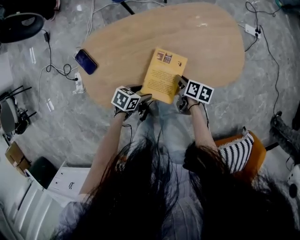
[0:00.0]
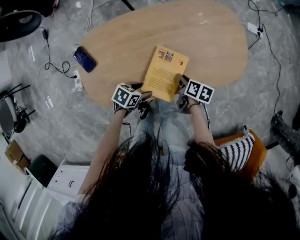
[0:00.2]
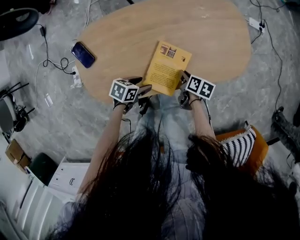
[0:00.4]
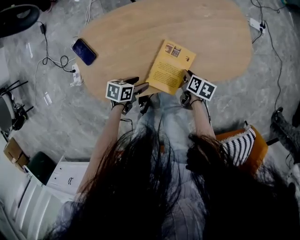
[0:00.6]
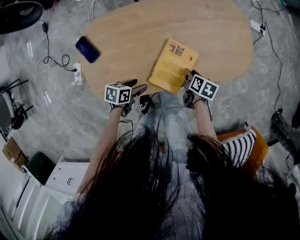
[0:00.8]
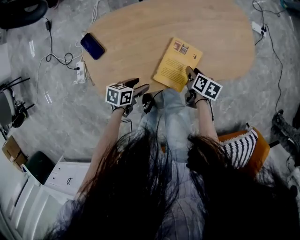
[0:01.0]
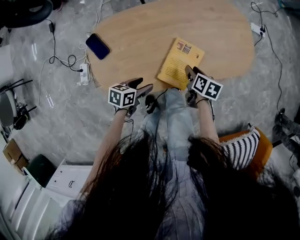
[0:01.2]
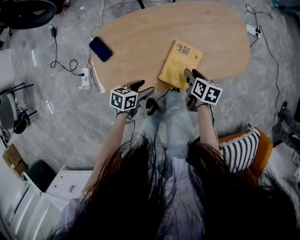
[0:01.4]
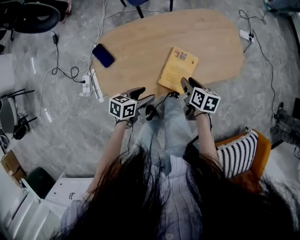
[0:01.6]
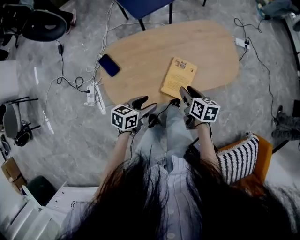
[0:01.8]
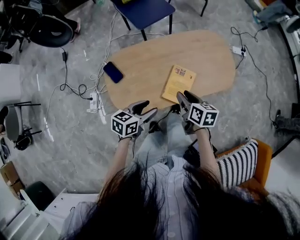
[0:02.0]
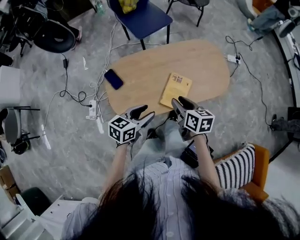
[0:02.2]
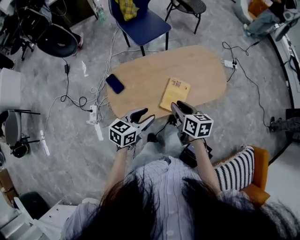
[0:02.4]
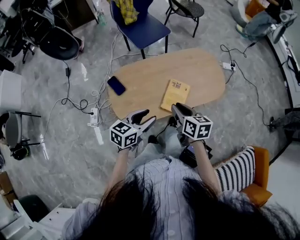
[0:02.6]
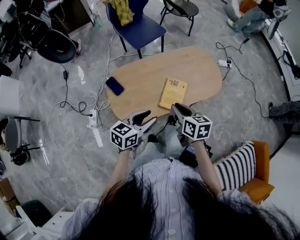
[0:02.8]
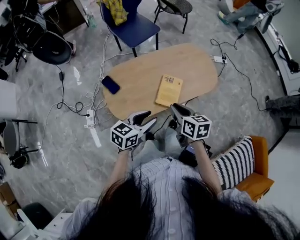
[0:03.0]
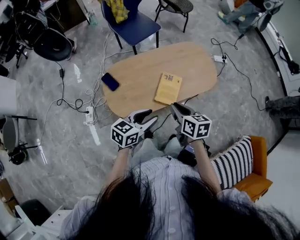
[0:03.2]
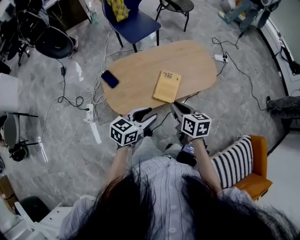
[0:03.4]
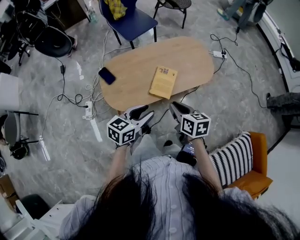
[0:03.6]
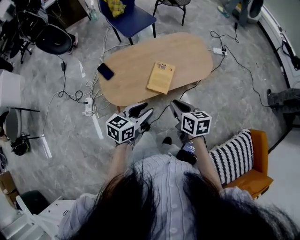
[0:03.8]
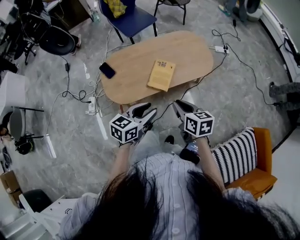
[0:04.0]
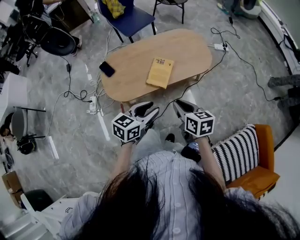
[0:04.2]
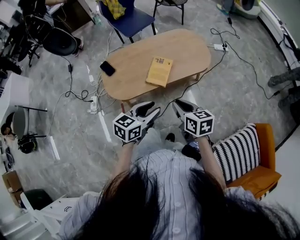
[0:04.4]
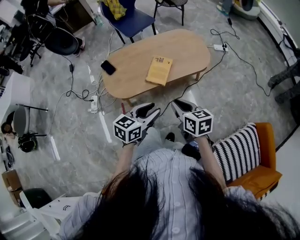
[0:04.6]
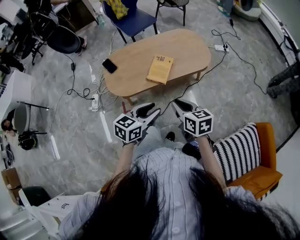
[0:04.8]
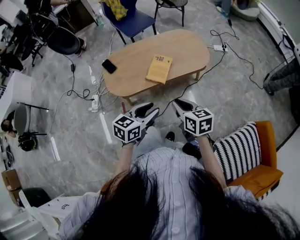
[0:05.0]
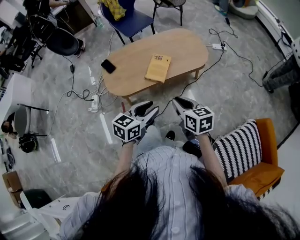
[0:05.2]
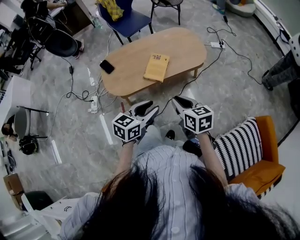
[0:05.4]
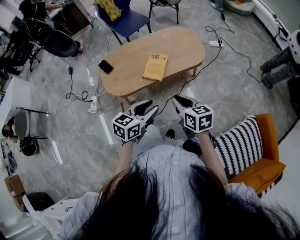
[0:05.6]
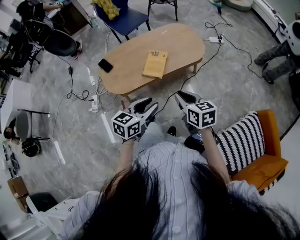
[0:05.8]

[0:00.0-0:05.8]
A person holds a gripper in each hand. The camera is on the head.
0.0 to 1.4 s: The left gripper changes place by roughly 10 cm. The right gripper shifts about 5 cm upward.
1.4 to 2.8 s: The right gripper heads upward and backward, covering about 30 cm, turns by some 20 degrees, and closes. Meanwhile the left gripper heads upward, covering some 30 cm, and changes its angle by roughly 30 degrees.
2.8 to 4.4 s: Both grippers move to the right and backward, roughly 25 cm.
4.4 to 5.8 s: The left gripper is displaced backward by approximately 5 cm; the right gripper shifts by approximately 5 cm.

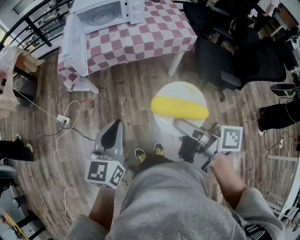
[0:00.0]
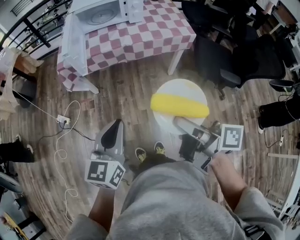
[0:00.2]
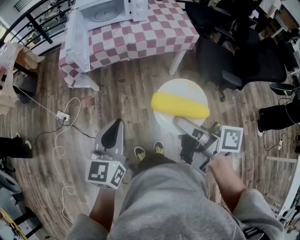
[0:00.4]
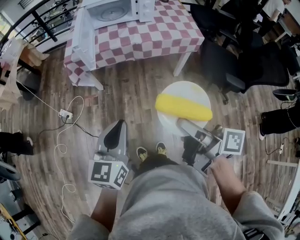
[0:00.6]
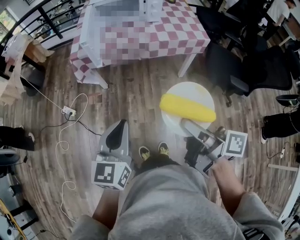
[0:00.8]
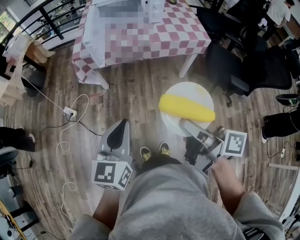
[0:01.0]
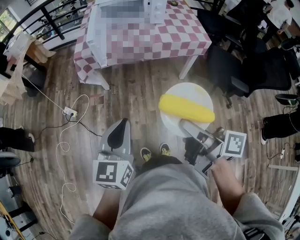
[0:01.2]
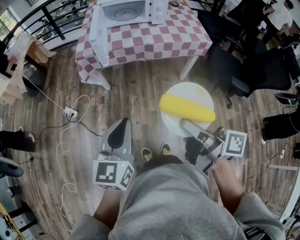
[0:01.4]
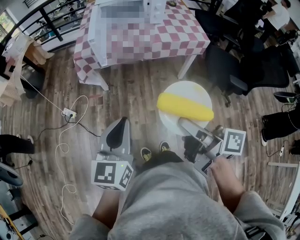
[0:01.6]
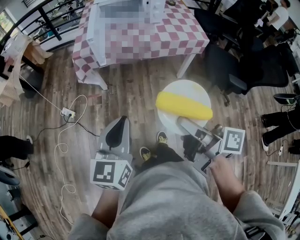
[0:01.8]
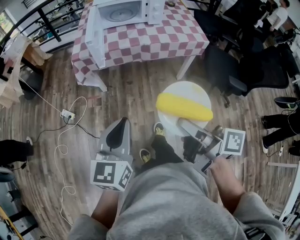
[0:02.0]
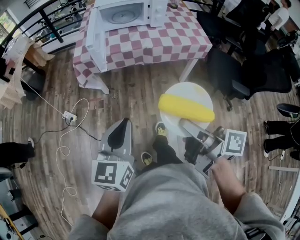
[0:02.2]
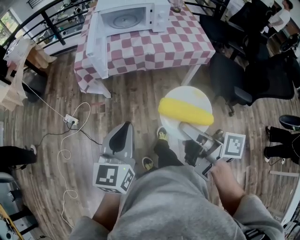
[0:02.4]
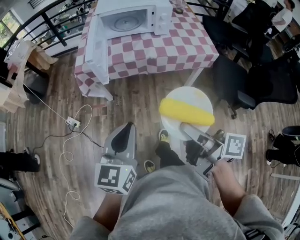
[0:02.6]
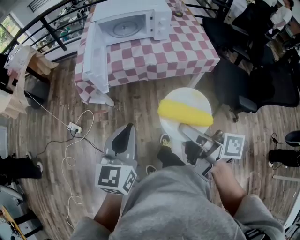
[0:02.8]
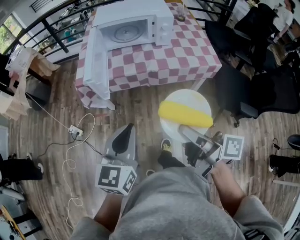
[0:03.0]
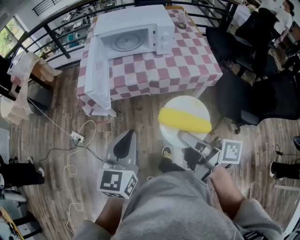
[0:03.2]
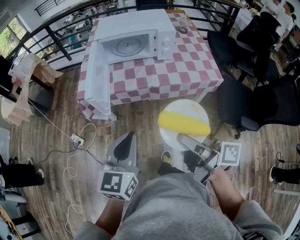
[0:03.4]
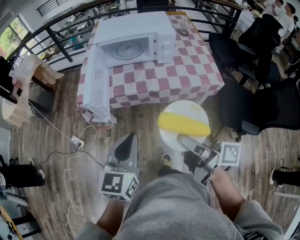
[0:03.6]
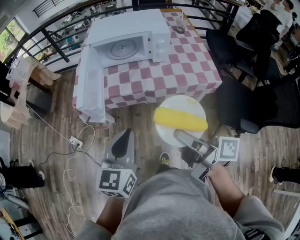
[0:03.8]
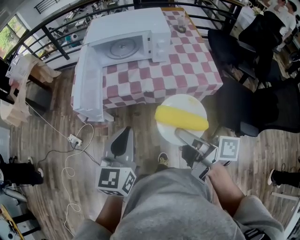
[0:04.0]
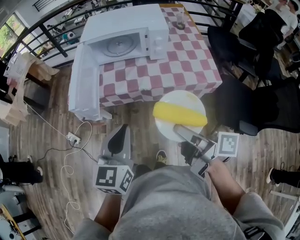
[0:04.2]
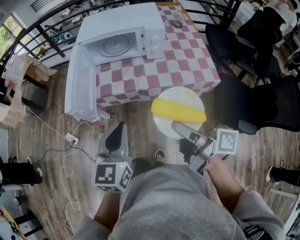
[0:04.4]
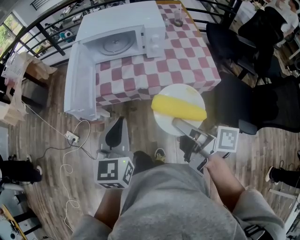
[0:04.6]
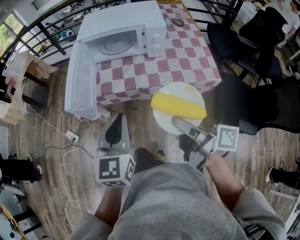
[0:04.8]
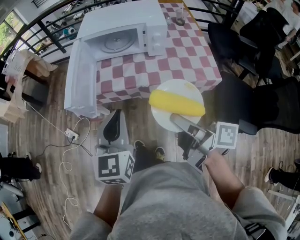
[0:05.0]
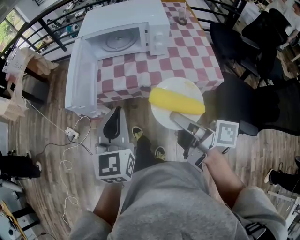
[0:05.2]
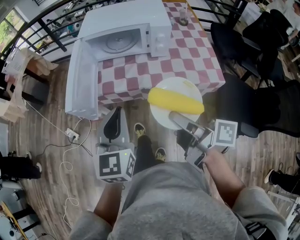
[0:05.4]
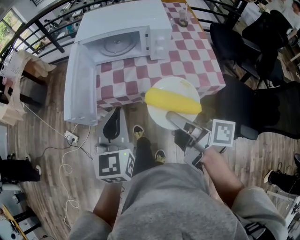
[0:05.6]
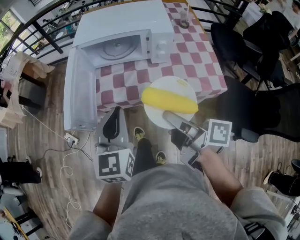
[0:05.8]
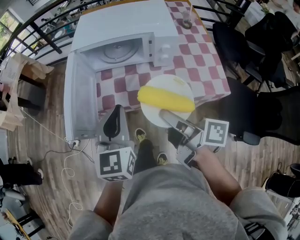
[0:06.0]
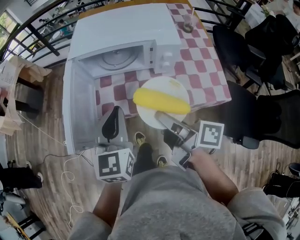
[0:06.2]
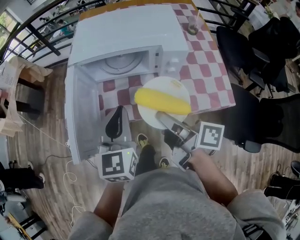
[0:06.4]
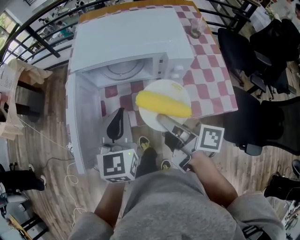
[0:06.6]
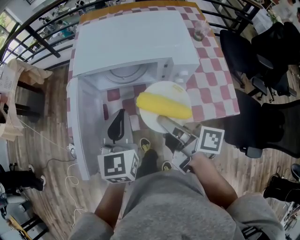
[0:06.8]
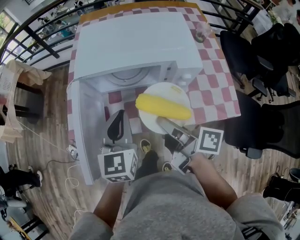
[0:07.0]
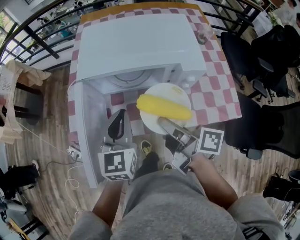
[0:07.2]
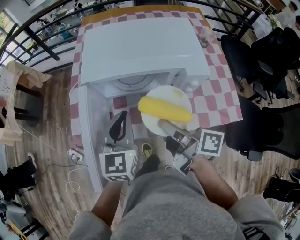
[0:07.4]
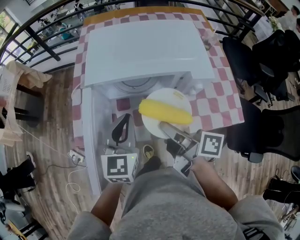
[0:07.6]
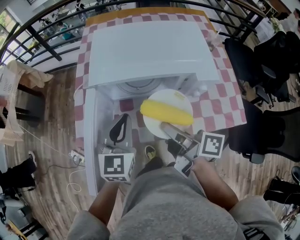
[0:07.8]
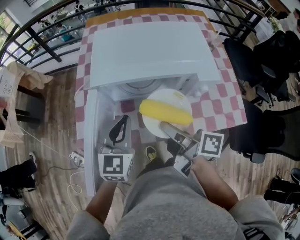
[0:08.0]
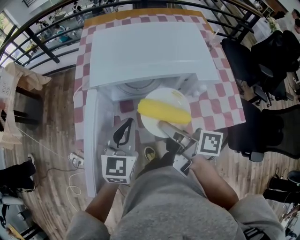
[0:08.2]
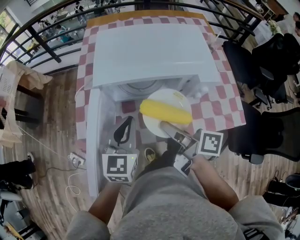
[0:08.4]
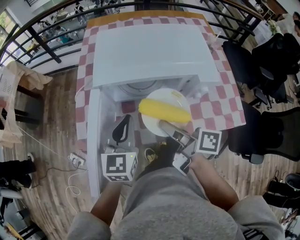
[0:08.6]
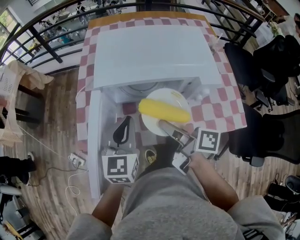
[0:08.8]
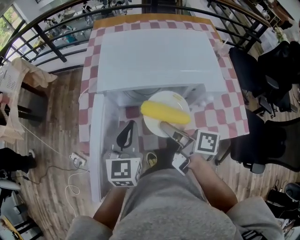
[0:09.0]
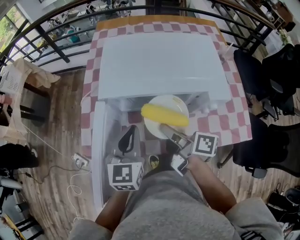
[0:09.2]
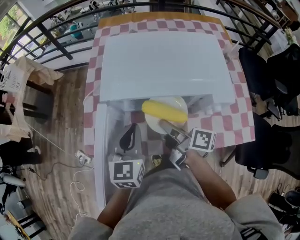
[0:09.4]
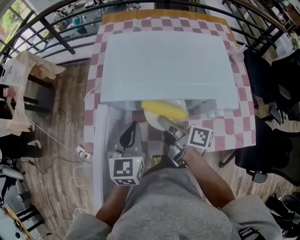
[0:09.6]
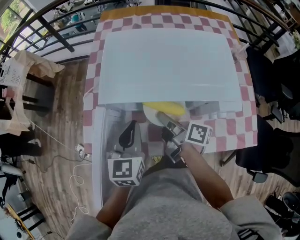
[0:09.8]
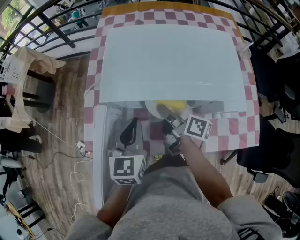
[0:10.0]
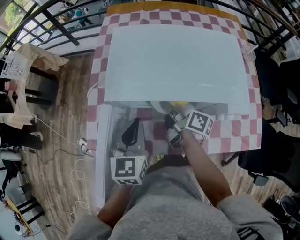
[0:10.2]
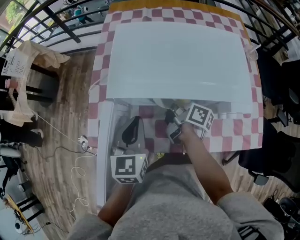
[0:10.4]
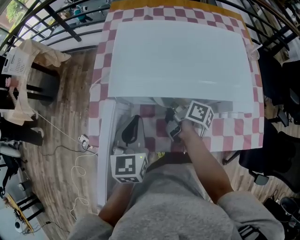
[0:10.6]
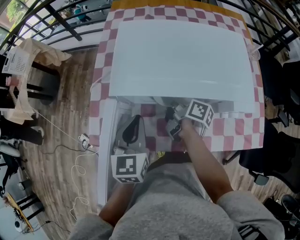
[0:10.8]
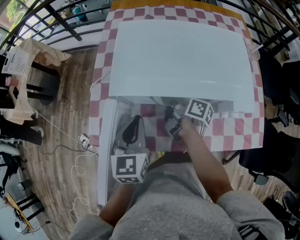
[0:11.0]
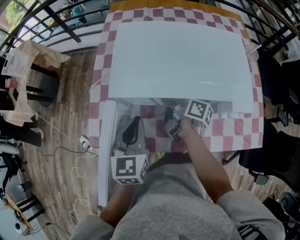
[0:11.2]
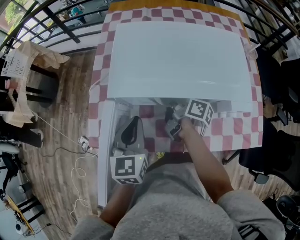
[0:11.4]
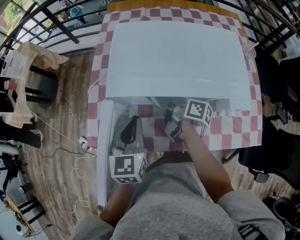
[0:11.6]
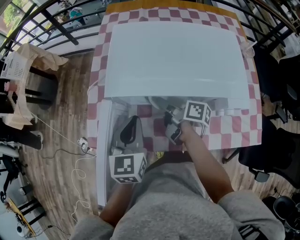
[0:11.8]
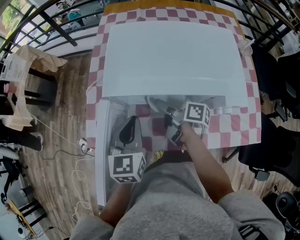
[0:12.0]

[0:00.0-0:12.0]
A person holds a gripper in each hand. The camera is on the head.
0.0 to 1.6 s: The grippers both shift to the left by about 10 cm.
1.6 to 3.0 s: The left gripper shifts approximately 20 cm forward and to the right, while the right gripper travels forward by roughly 15 cm.
3.0 to 4.4 s: The grippers both shift forward and to the right by approximately 15 cm.
4.4 to 6.0 s: Both grippers travel together forward, roughly 15 cm.
6.0 to 7.6 s: Both grippers travel together forward, roughly 20 cm.
7.6 to 9.0 s: The right gripper ends up approximately 5 cm from where it was.
9.0 to 10.4 s: The right gripper moves forward and downward, roughly 20 cm, while the left gripper moves forward, some 5 cm.
10.4 to 12.0 s: The right gripper opens.

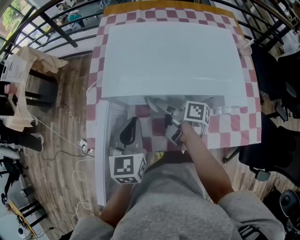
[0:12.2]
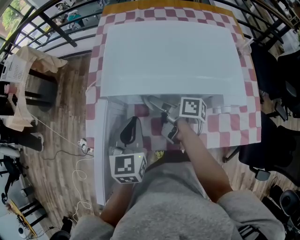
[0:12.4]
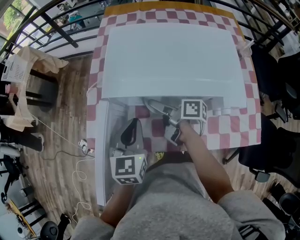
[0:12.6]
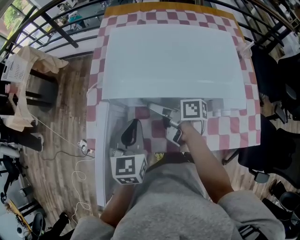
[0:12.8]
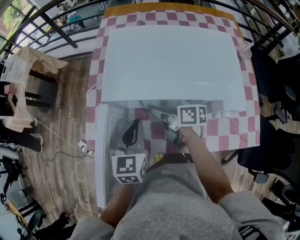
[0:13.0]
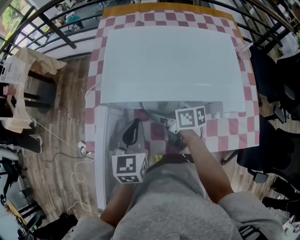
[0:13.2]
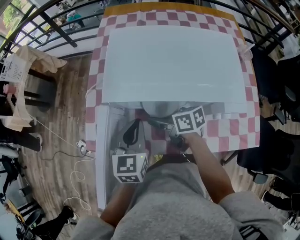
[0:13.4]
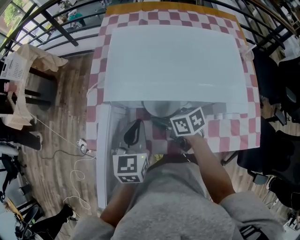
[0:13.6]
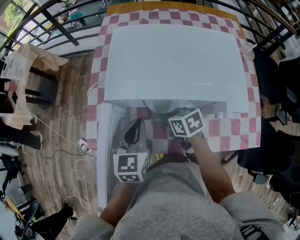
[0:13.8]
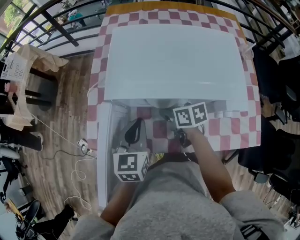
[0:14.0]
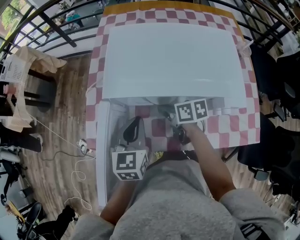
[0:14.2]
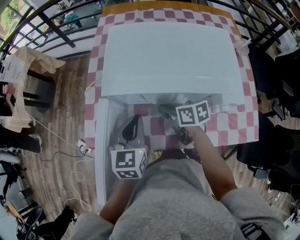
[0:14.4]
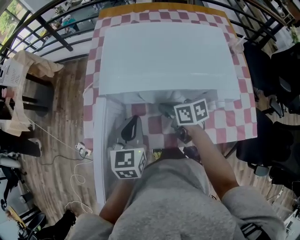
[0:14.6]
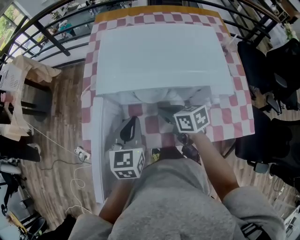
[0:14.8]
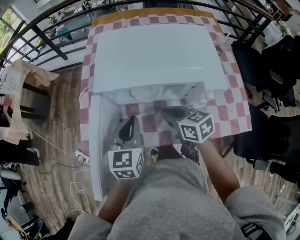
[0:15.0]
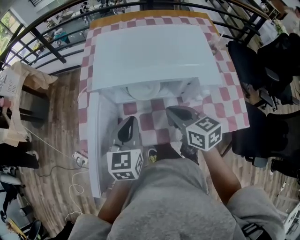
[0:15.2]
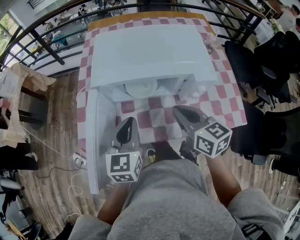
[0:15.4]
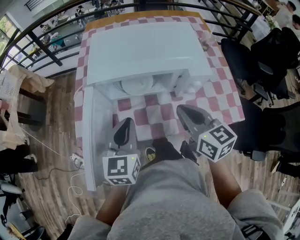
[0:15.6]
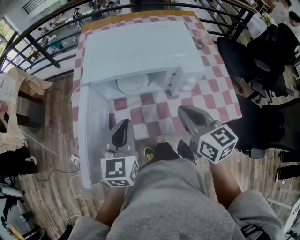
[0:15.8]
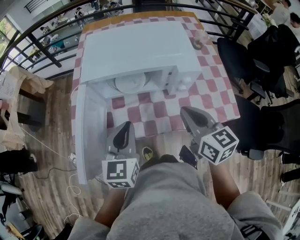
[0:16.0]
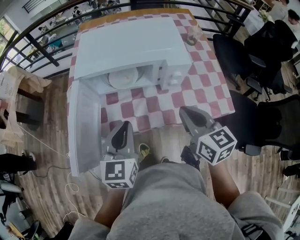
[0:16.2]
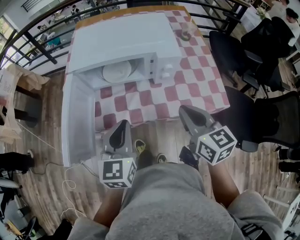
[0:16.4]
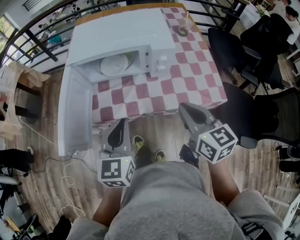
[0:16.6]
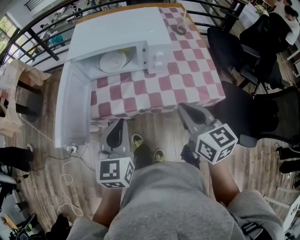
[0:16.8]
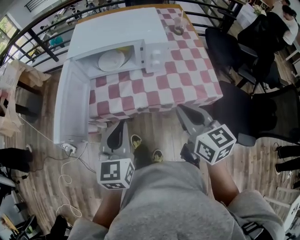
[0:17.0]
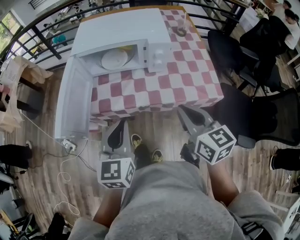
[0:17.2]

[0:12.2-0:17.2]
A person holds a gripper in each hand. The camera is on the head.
12.2 to 13.8 s: The right gripper rolls counterclockwise, seen from behind, by some 50 degrees, and closes its fingers.
13.8 to 15.6 s: The left gripper heads backward and upward, covering about 10 cm, while the right gripper shifts some 25 cm upward, backward and to the right, and rotates approximately 40 degrees.
15.6 to 17.2 s: Both grippers travel together backward and to the right, roughly 20 cm.

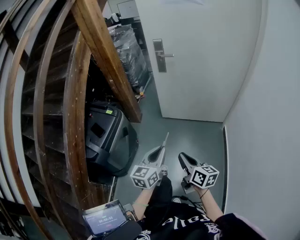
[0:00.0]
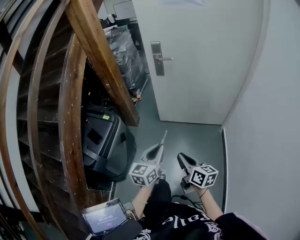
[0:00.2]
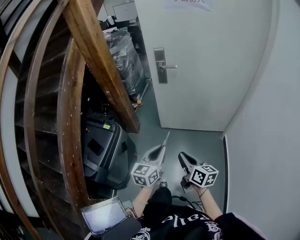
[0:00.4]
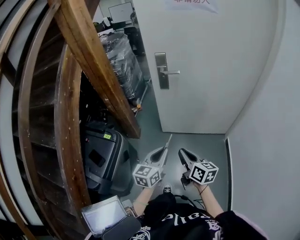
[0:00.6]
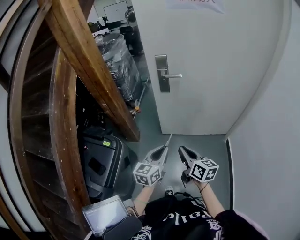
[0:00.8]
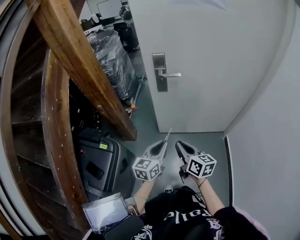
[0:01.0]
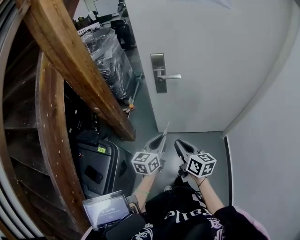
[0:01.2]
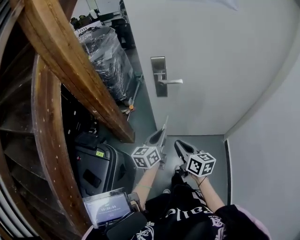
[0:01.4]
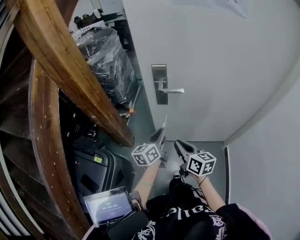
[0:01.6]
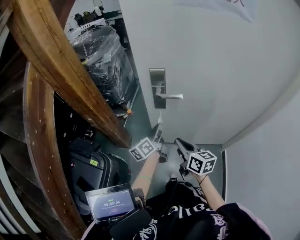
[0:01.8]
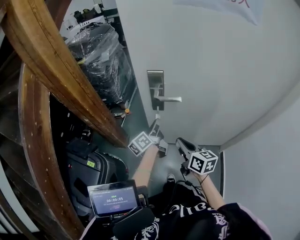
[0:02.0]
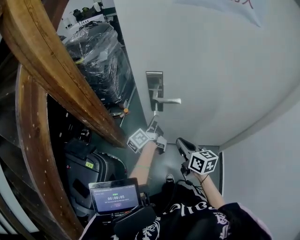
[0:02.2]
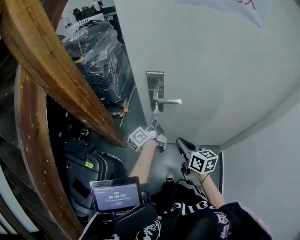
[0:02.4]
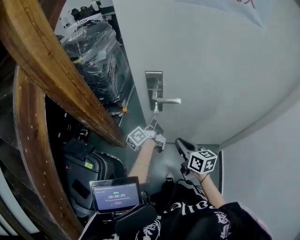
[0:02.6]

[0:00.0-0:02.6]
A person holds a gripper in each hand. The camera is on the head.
0.0 to 1.2 s: Both grippers move forward, about 40 cm.
1.2 to 2.6 s: The left gripper shifts about 30 cm forward, and twists some 50 degrees counterclockwise, seen from behind, while the right gripper heads forward, covering about 20 cm.
